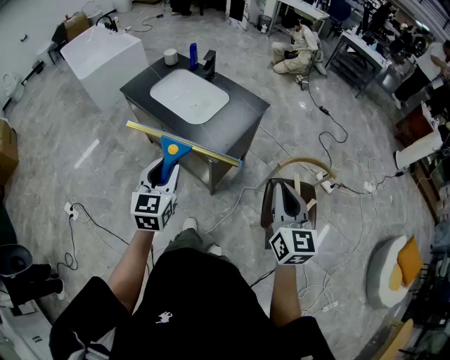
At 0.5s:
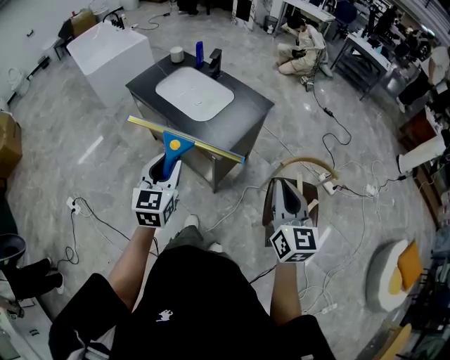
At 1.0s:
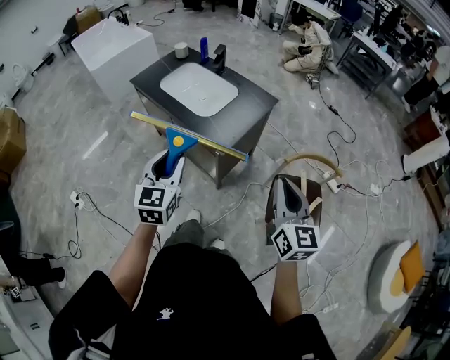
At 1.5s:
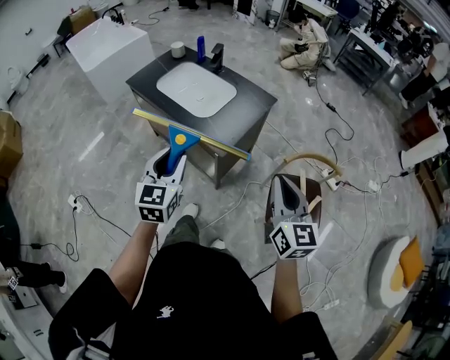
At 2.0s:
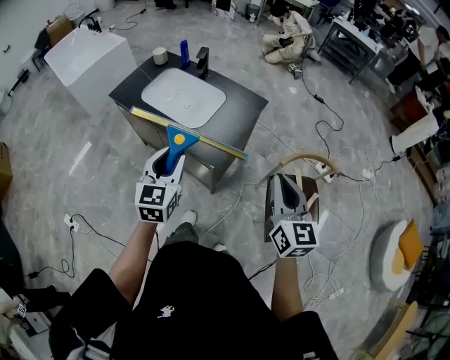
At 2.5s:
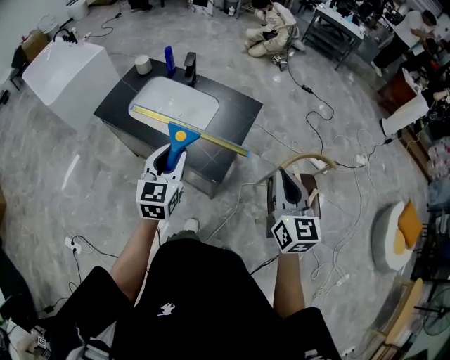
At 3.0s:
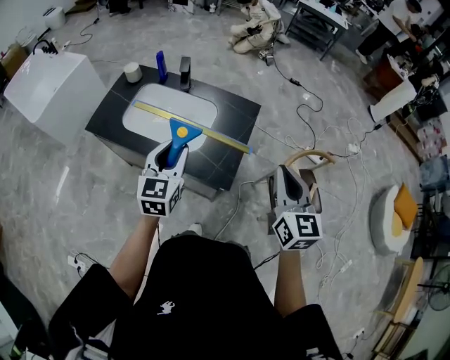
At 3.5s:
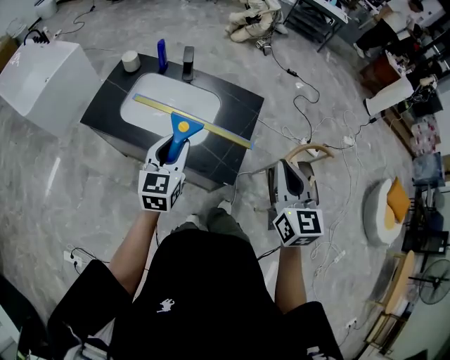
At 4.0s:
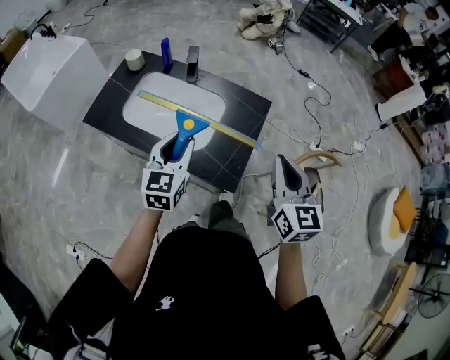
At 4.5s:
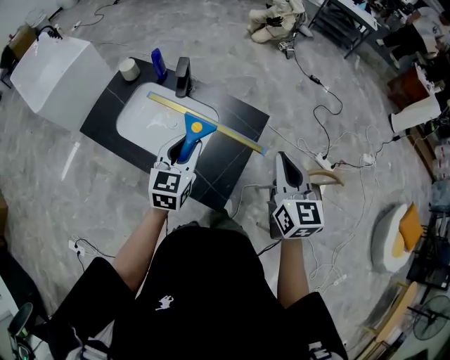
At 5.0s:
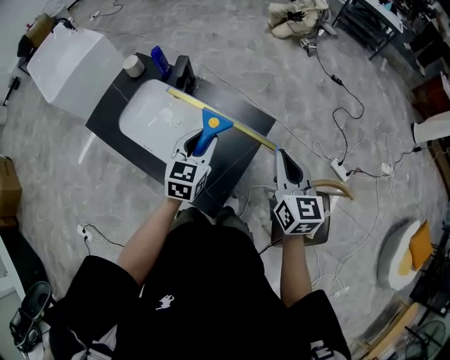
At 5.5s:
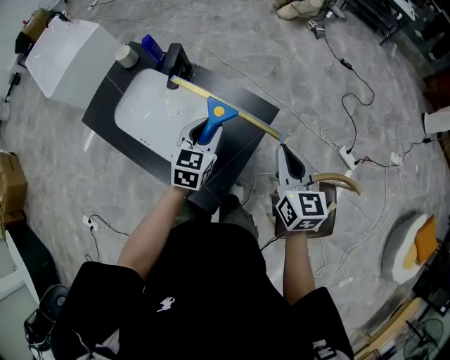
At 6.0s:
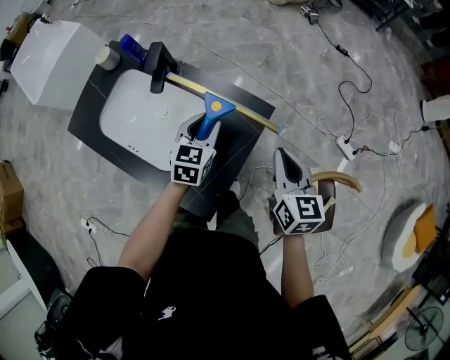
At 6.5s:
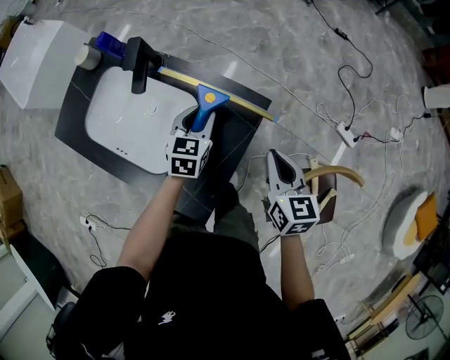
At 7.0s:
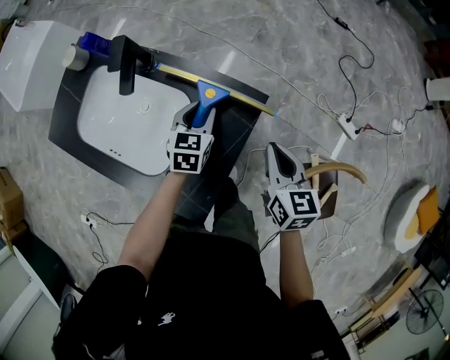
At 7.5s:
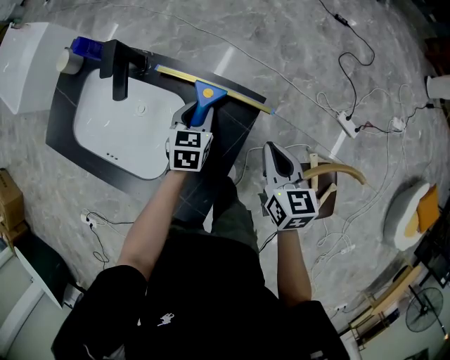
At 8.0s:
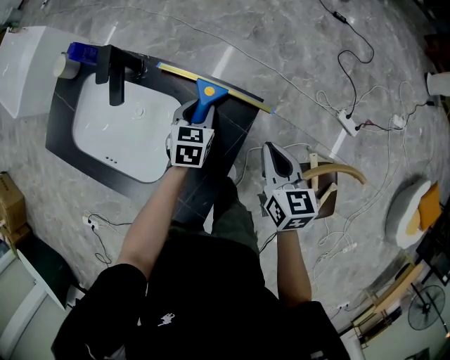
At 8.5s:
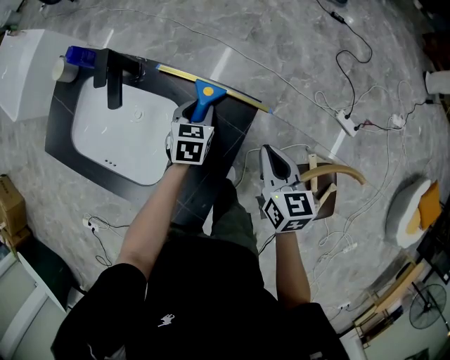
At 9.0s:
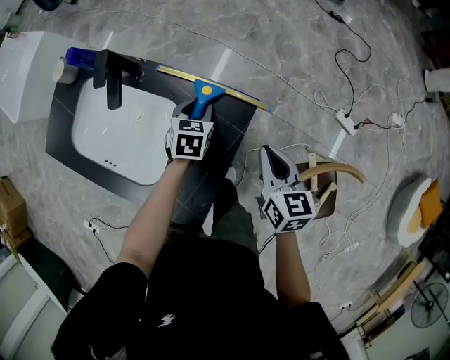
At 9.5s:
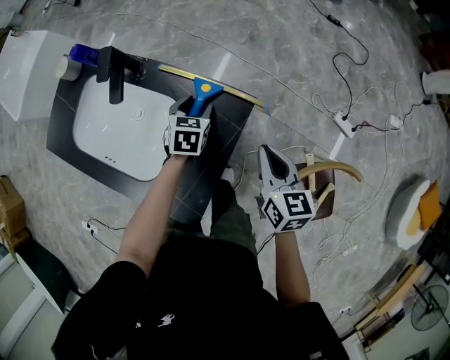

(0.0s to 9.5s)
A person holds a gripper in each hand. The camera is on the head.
0.0s - 2.0s: Both grippers travel together forward, some 5 cm.
2.0s - 4.0s: The left gripper moves forward, roughly 20 cm, while the right gripper is displaced forward and to the left by roughly 20 cm.
4.0s - 5.5s: Both grippers travel together forward, to the right and downward, roughly 25 cm.
5.5s - 7.5s: Both grippers travel together downward and forward, some 15 cm.
7.5s - 9.5s: The left gripper opens its fingers.

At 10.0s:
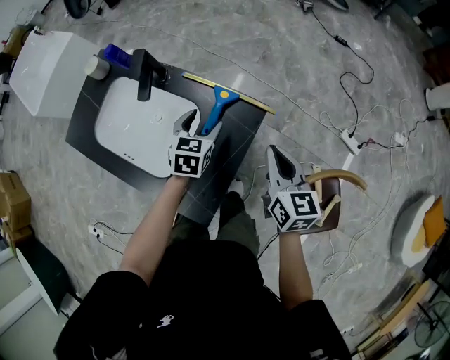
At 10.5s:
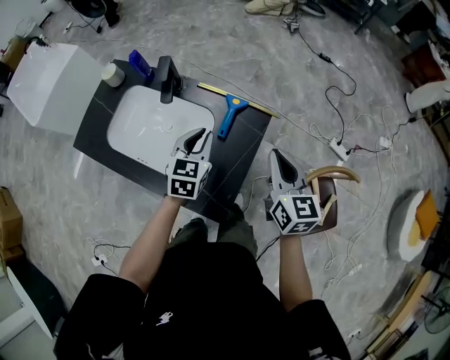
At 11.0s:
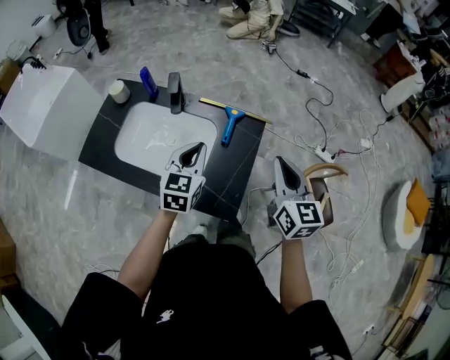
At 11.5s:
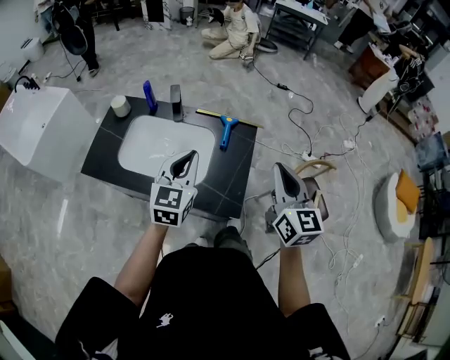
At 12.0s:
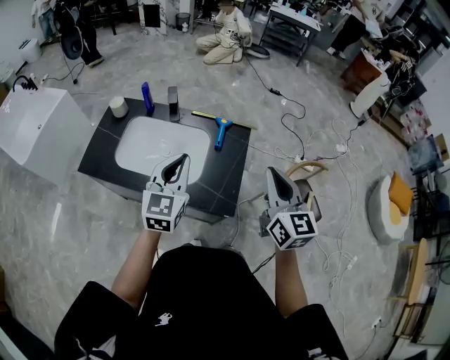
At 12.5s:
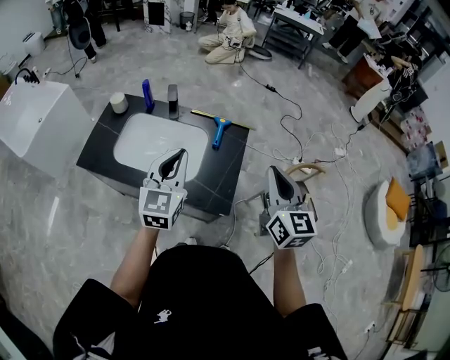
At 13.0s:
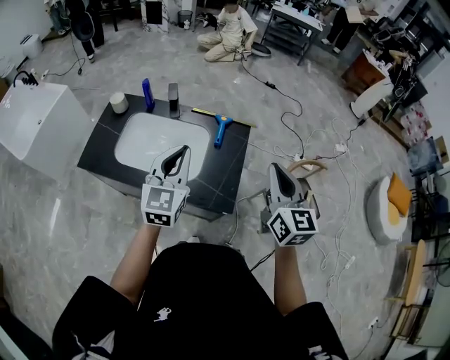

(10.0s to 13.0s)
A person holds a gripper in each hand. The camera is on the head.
10.0s - 11.5s: The right gripper is displaced backward, upward and to the left by approximately 30 cm, and turns by approximately 30 degrees. The left gripper goes approximately 35 cm upward, backward and to the left, turns by some 30 degrees, and closes its fingers.
11.5s - 13.0s: The left gripper ends up about 5 cm from where it was.

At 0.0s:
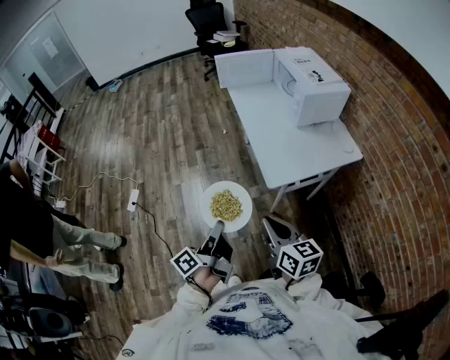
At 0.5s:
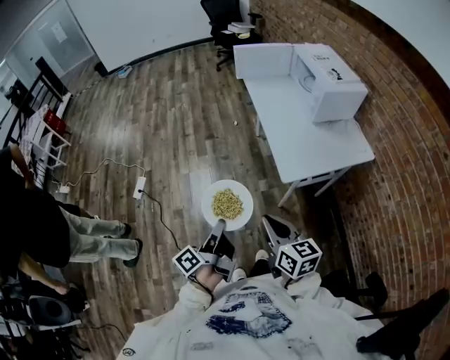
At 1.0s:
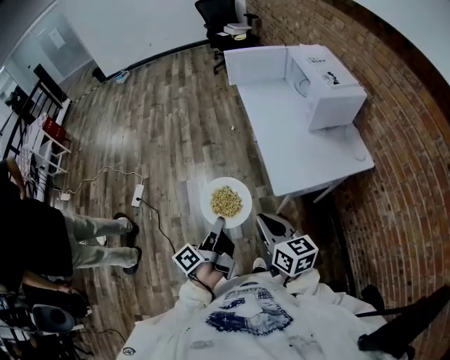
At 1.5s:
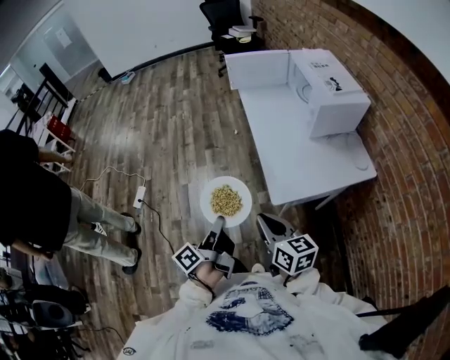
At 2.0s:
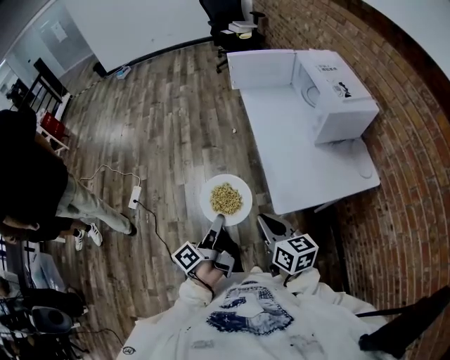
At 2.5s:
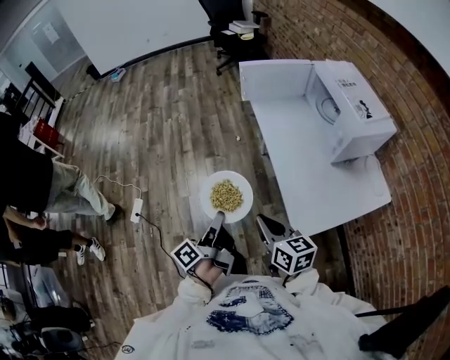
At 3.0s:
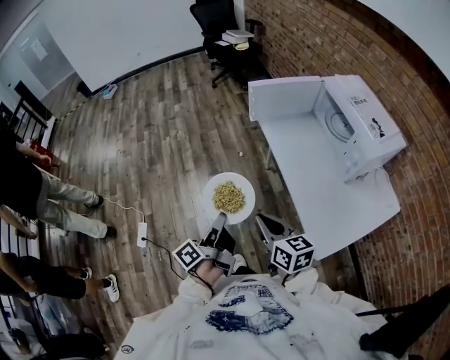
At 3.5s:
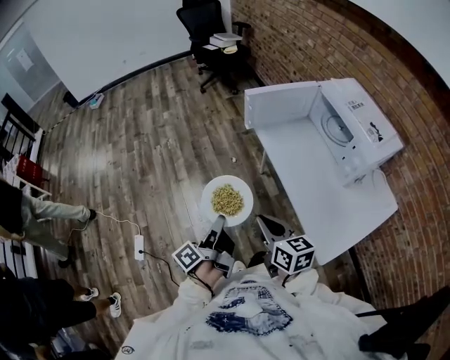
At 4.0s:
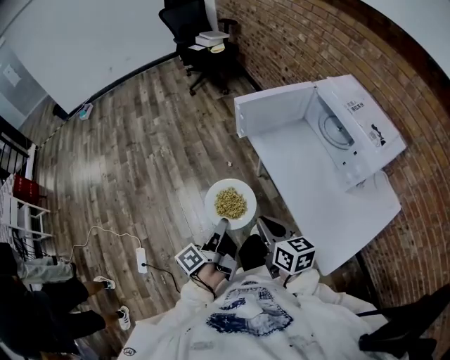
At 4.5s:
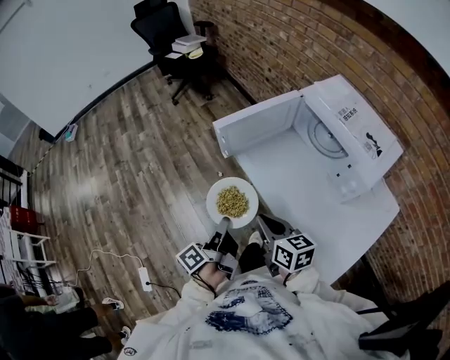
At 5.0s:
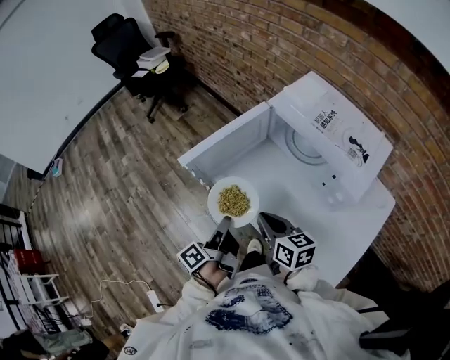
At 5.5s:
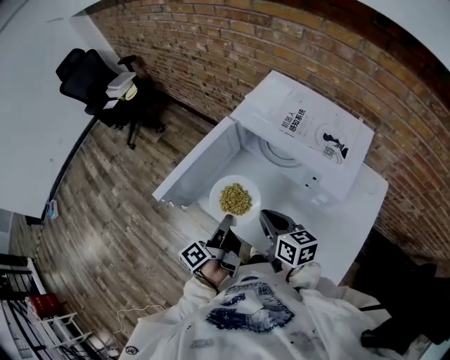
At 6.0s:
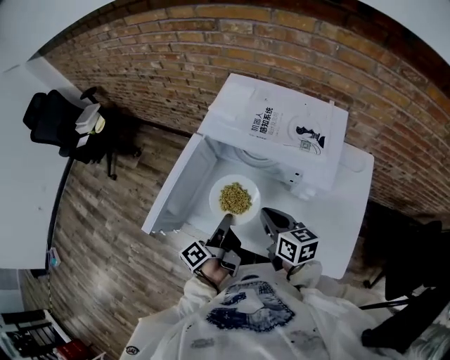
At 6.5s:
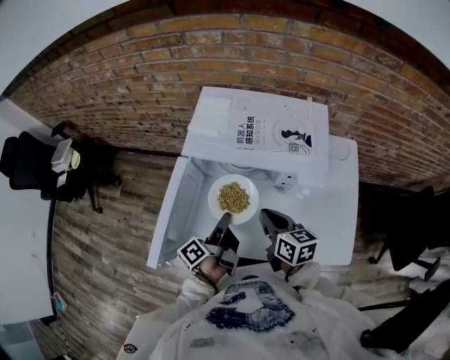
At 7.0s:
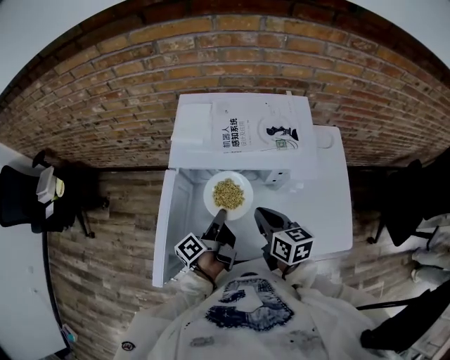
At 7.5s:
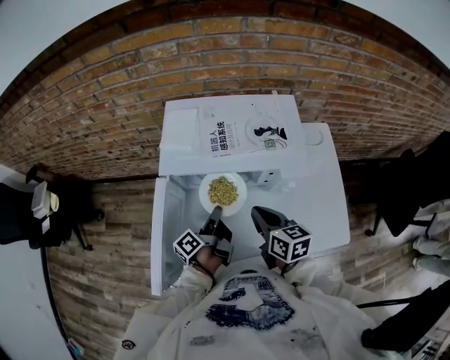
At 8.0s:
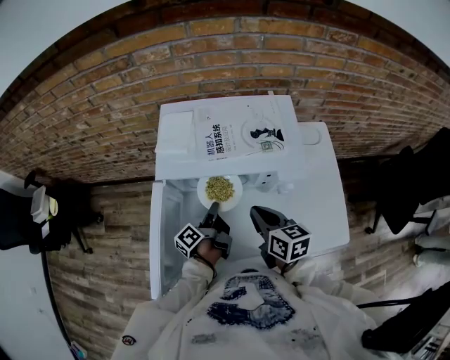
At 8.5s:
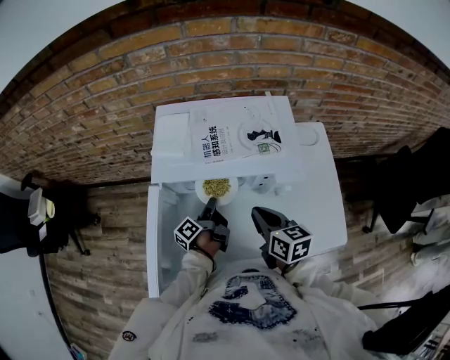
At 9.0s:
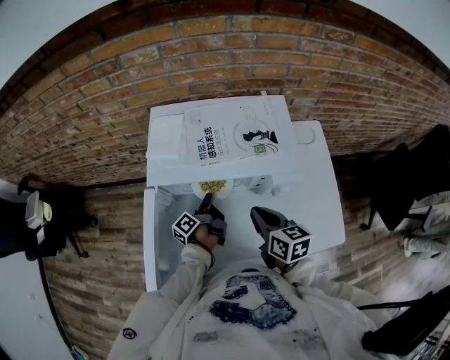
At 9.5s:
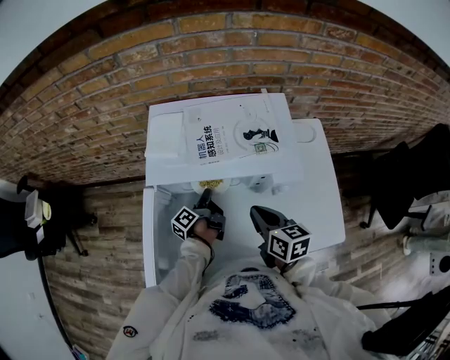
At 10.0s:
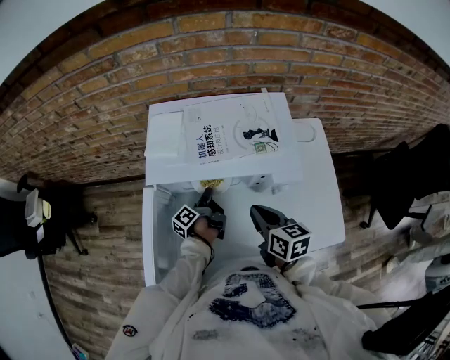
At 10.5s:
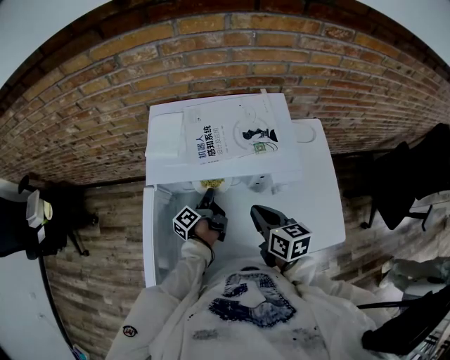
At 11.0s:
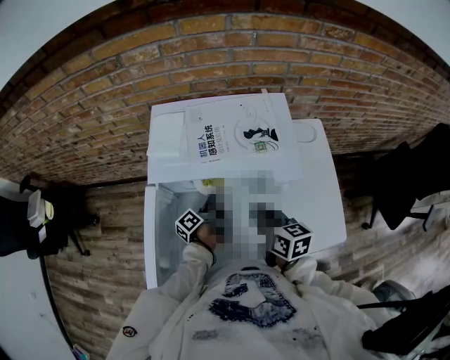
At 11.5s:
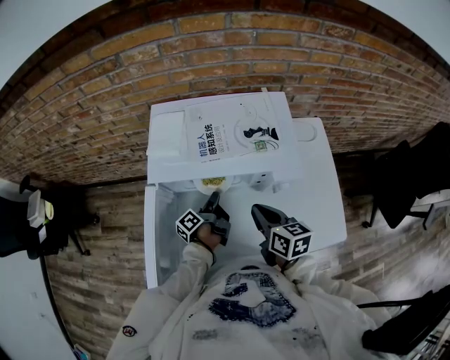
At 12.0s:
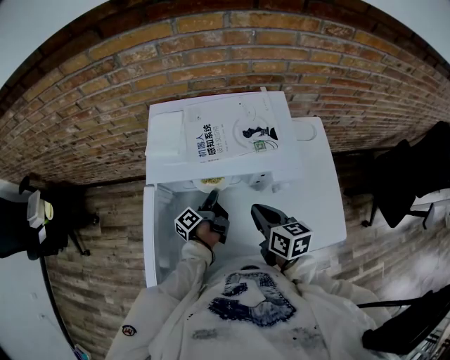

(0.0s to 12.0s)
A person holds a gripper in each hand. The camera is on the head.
0.0s - 2.0s: The right gripper changes place by approximately 15 cm.
2.0s - 4.0s: The right gripper shifts by some 40 cm.
4.0s - 6.0s: The right gripper shifts by about 35 cm, and turns by about 40 degrees.
6.0s - 8.0s: The right gripper swivels approximately 30 degrees.

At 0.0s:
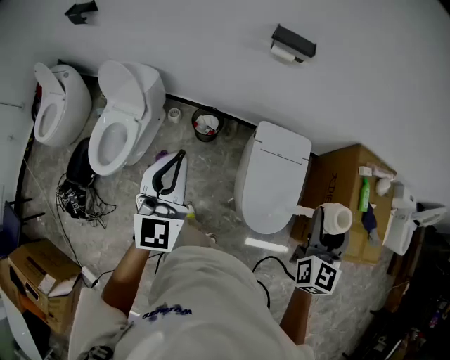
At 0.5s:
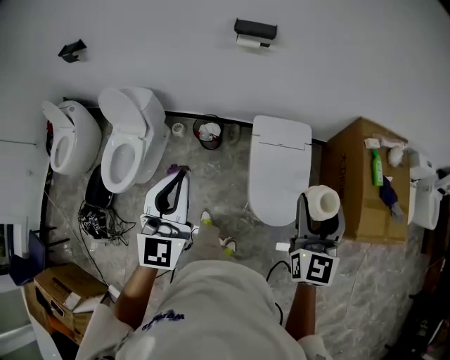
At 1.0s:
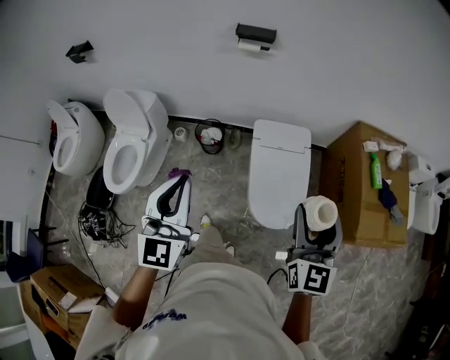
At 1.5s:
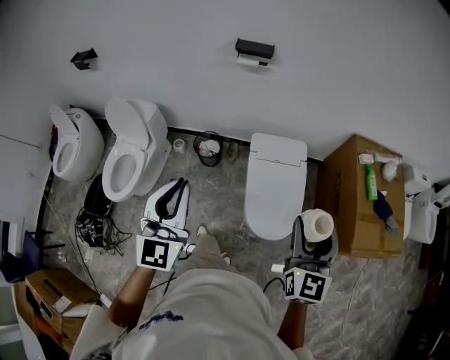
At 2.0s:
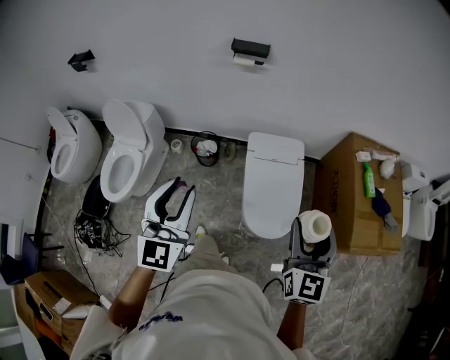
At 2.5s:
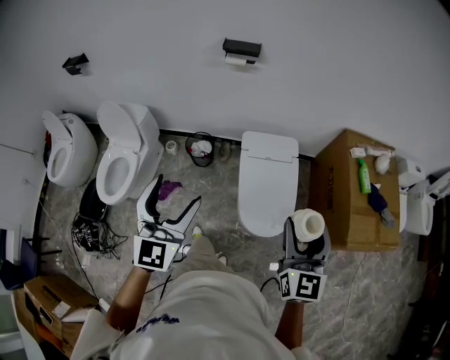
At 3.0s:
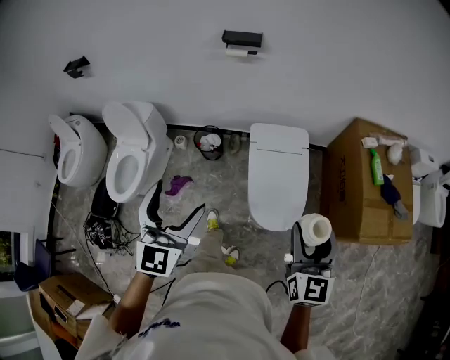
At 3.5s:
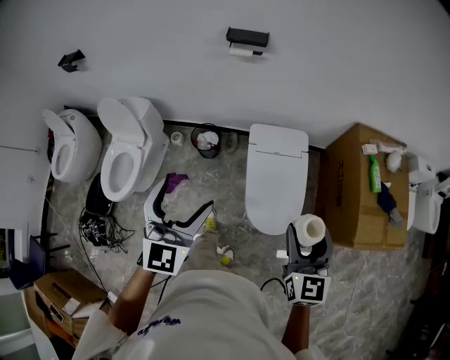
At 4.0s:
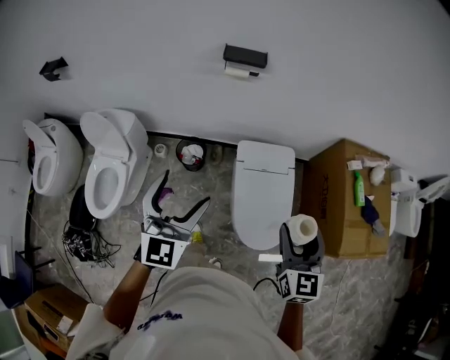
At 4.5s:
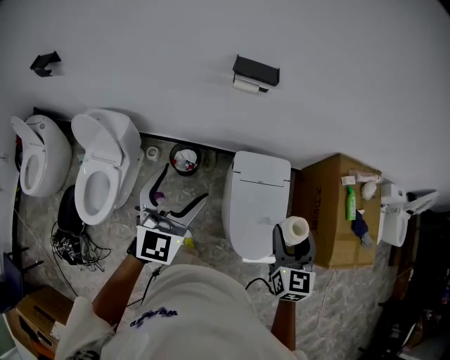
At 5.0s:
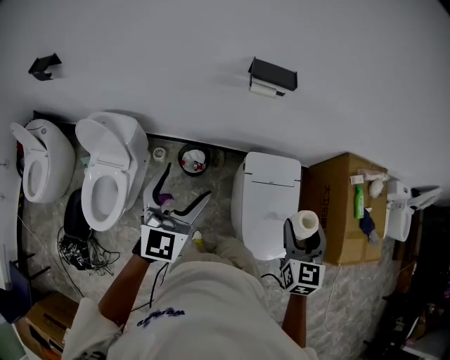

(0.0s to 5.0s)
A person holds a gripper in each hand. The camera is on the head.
0.0s - 2.5s: The left gripper is displaced to the right and backward by roughly 20 cm, and opens its fingers. Meanwhile the right gripper is displaced backward and to the right by about 15 cm.
2.5s - 5.0s: The grippers both shift forward and to the left by approximately 30 cm. The right gripper changes its angle by about 20 degrees.
